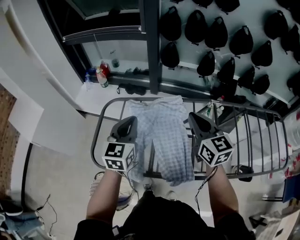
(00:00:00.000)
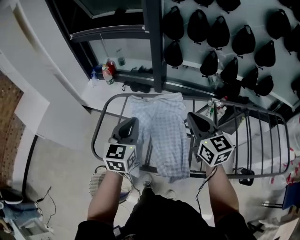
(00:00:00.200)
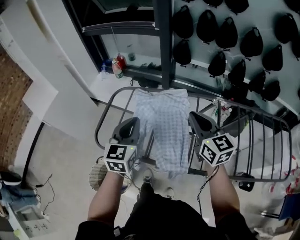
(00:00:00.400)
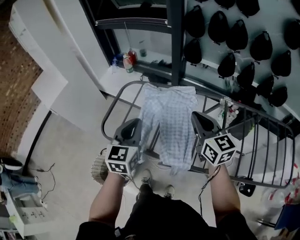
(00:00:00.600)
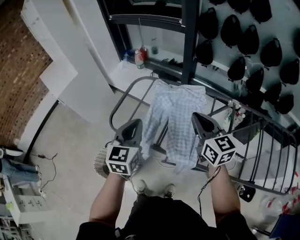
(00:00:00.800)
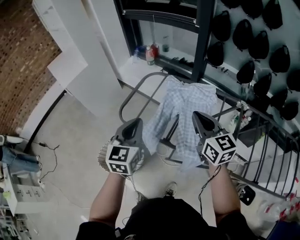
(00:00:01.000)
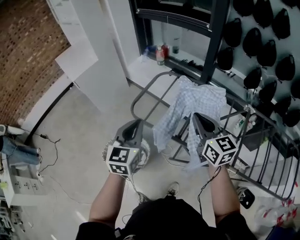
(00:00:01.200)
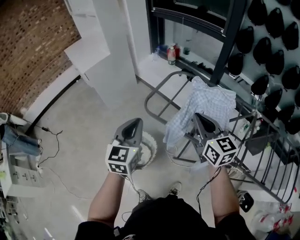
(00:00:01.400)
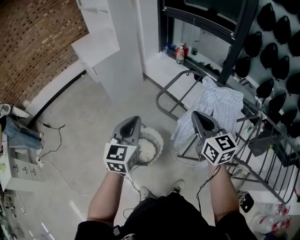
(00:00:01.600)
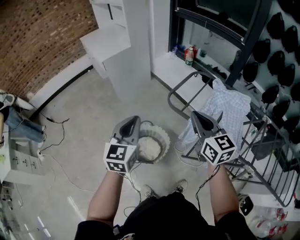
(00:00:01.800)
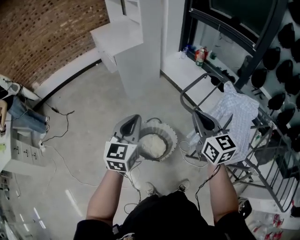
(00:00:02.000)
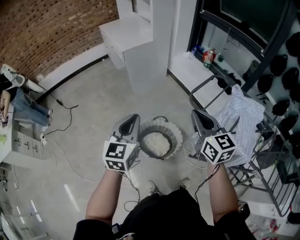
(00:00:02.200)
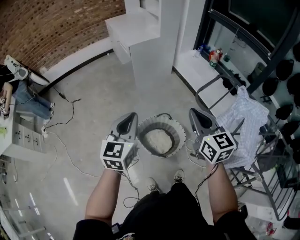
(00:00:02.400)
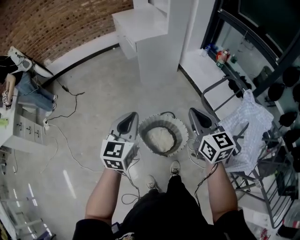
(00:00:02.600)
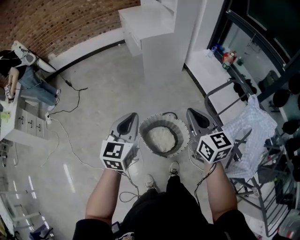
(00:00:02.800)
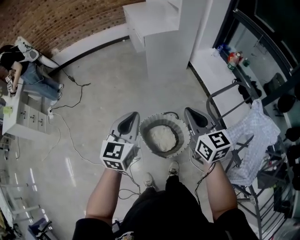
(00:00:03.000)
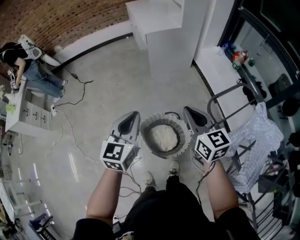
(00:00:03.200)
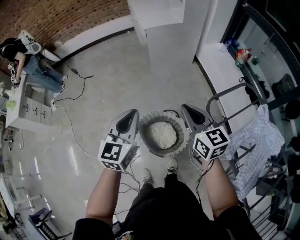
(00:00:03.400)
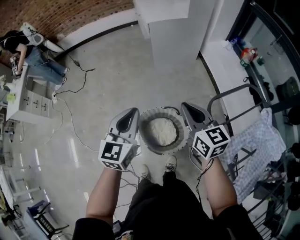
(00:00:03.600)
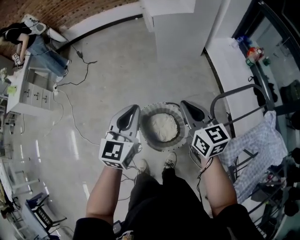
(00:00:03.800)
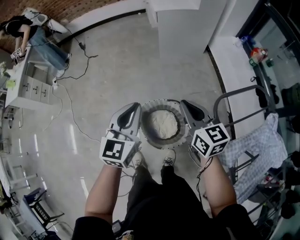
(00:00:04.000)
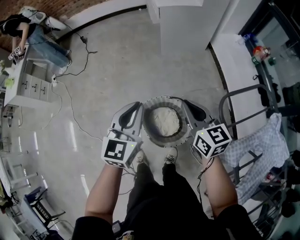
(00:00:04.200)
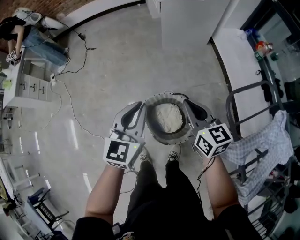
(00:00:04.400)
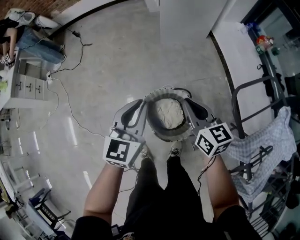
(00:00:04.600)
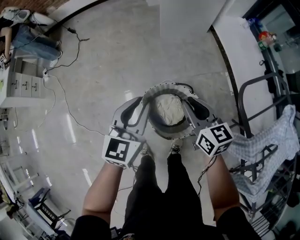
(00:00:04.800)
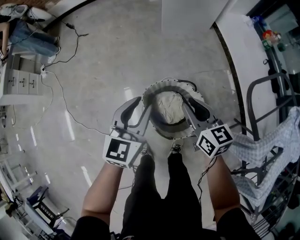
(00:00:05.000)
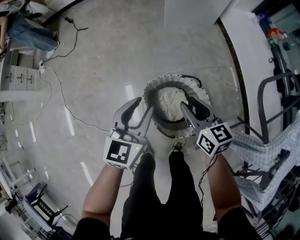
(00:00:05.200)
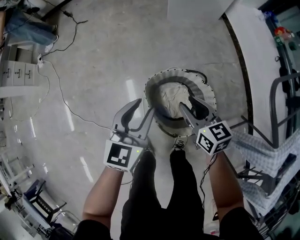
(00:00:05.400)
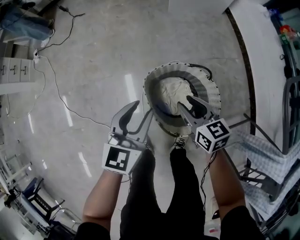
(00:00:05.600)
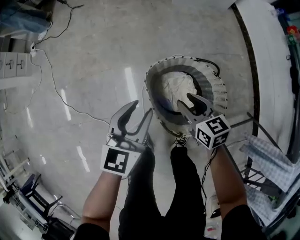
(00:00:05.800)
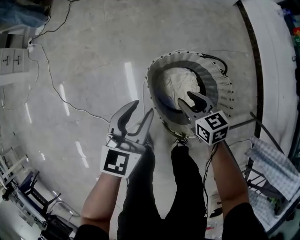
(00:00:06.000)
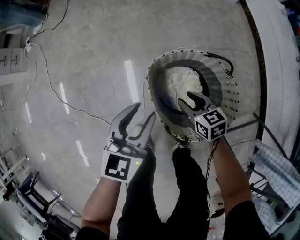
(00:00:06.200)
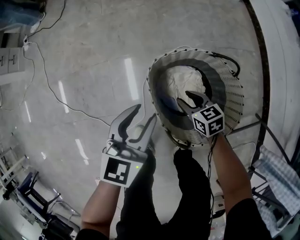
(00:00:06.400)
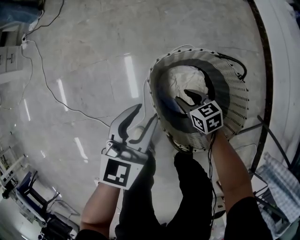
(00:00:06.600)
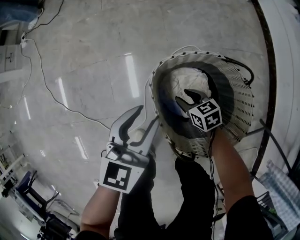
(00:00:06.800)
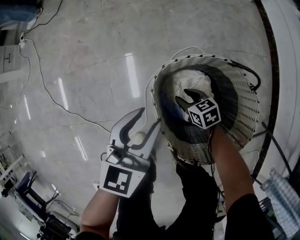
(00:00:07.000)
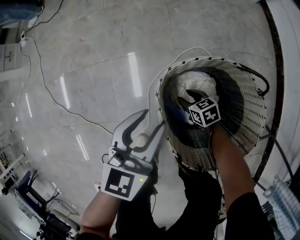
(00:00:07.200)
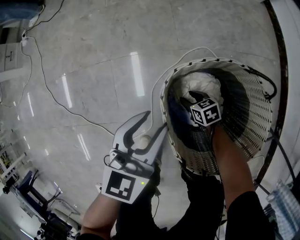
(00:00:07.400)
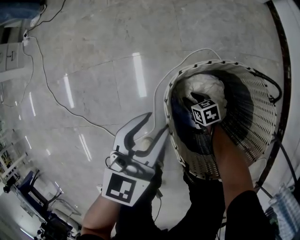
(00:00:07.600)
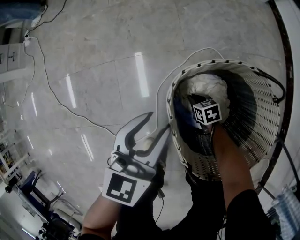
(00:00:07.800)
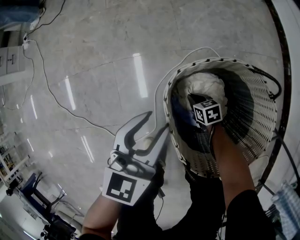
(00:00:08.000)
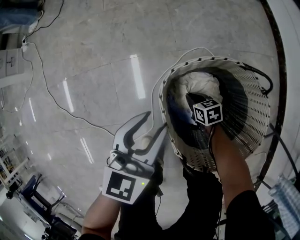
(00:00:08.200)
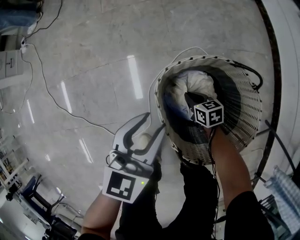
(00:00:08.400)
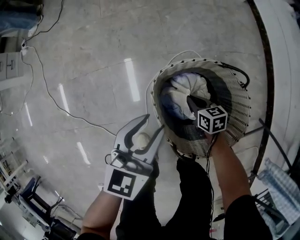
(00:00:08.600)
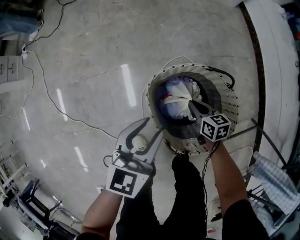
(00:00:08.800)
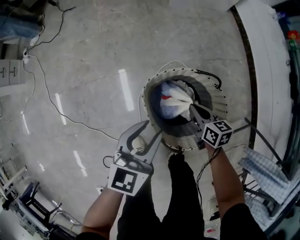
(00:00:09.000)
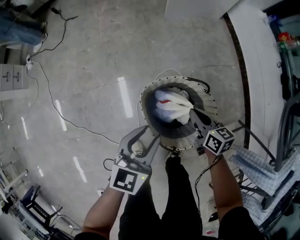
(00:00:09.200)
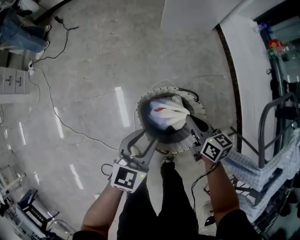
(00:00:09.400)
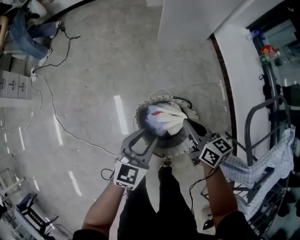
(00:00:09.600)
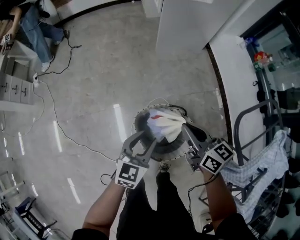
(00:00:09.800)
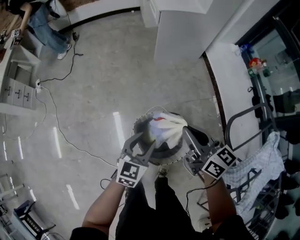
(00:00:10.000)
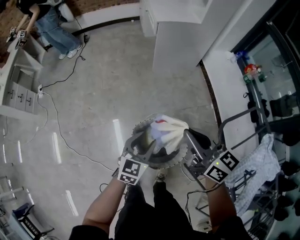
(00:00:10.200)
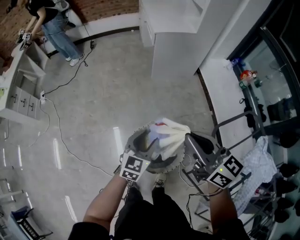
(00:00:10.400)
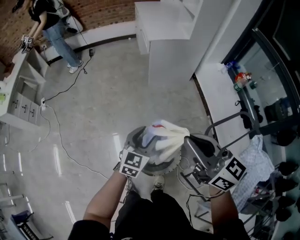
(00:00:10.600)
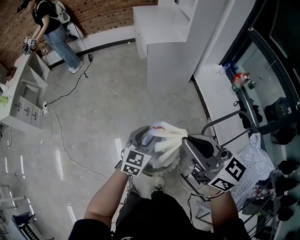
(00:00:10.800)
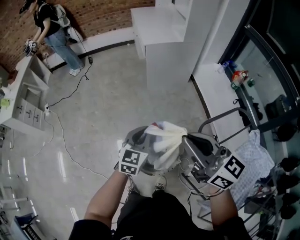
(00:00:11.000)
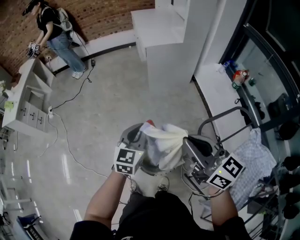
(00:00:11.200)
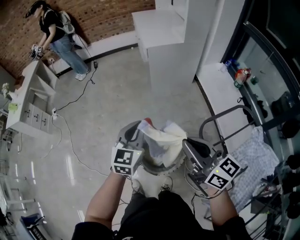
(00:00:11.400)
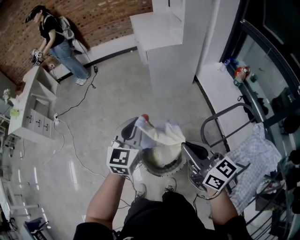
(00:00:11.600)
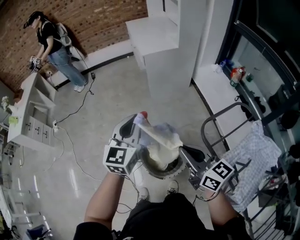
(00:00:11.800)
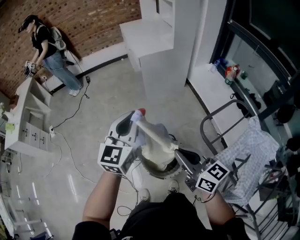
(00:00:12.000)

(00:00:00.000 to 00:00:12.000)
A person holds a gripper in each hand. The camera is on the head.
00:00:00.000 - 00:00:01.600: The right gripper moves roughly 35 cm, and rotates approximately 30 degrees. Meanwhile the left gripper moves about 40 cm, and turns by some 30 degrees.
00:00:01.600 - 00:00:03.000: The left gripper travels to the left by about 20 cm, and rotates approximately 20 degrees. Meanwhile the right gripper is displaced to the left and forward by some 25 cm, and rotates approximately 30 degrees.
00:00:03.000 - 00:00:04.400: The left gripper goes about 10 cm downward, while the right gripper travels downward and forward by roughly 15 cm.
00:00:04.400 - 00:00:06.000: The grippers both shift downward by approximately 40 cm. The right gripper changes its angle by about 30 degrees, and opens up, while the left gripper opens its fingers.
00:00:06.000 - 00:00:07.600: The right gripper heads downward, covering roughly 35 cm, and rotates roughly 20 degrees. The left gripper shifts approximately 15 cm downward.
00:00:07.600 - 00:00:09.000: The left gripper goes roughly 15 cm upward. The right gripper goes some 35 cm upward, swivels roughly 30 degrees, and closes.
00:00:09.000 - 00:00:10.400: The left gripper shifts roughly 25 cm upward, while the right gripper is displaced upward by roughly 60 cm, and angles its fingers upward, by some 30 degrees.
00:00:10.400 - 00:00:12.000: The left gripper moves upward, some 25 cm, turns by roughly 20 degrees, and closes. The right gripper is displaced backward by approximately 10 cm.

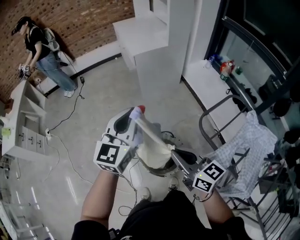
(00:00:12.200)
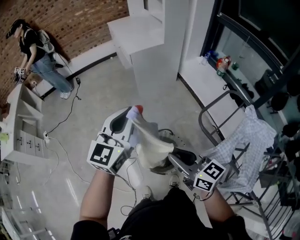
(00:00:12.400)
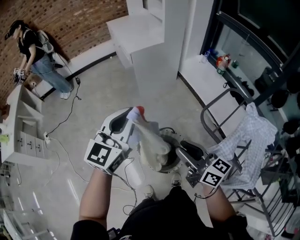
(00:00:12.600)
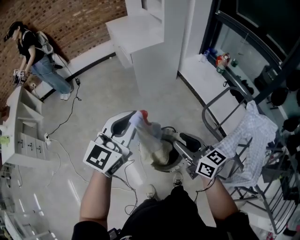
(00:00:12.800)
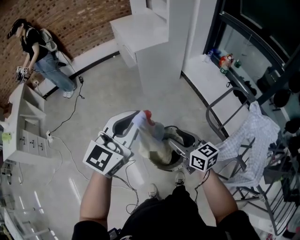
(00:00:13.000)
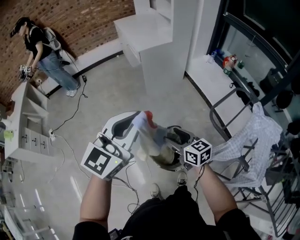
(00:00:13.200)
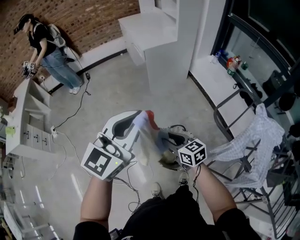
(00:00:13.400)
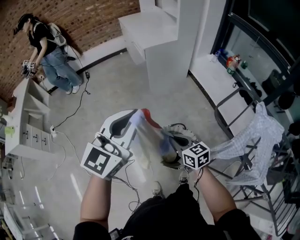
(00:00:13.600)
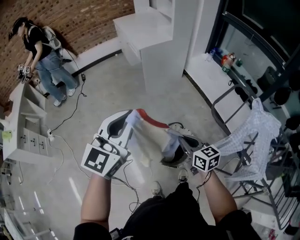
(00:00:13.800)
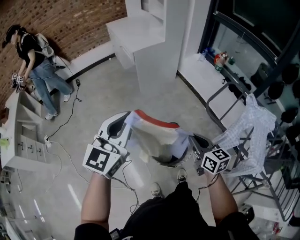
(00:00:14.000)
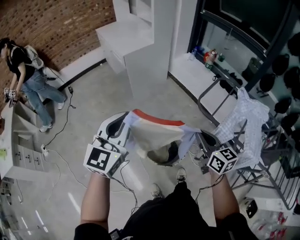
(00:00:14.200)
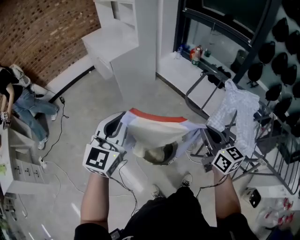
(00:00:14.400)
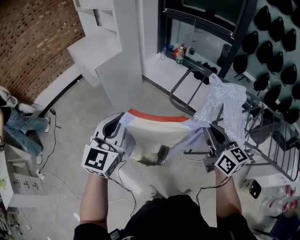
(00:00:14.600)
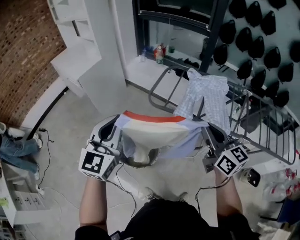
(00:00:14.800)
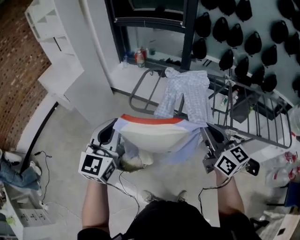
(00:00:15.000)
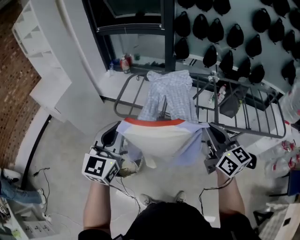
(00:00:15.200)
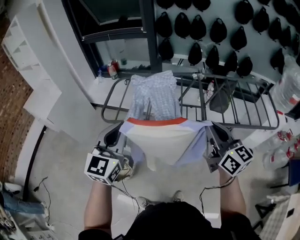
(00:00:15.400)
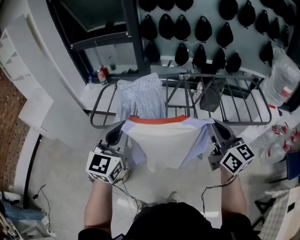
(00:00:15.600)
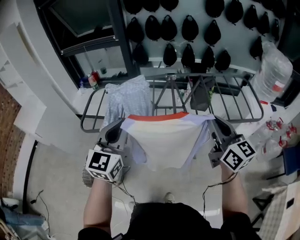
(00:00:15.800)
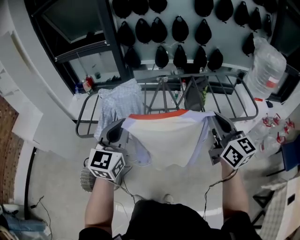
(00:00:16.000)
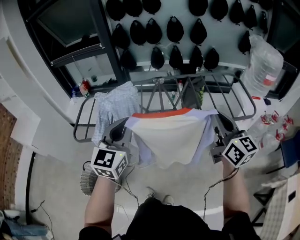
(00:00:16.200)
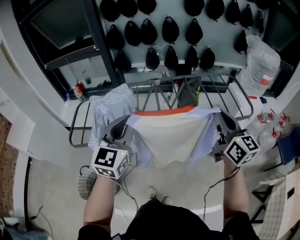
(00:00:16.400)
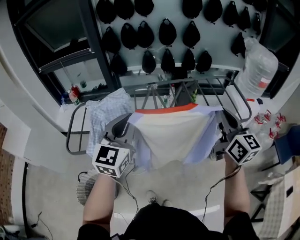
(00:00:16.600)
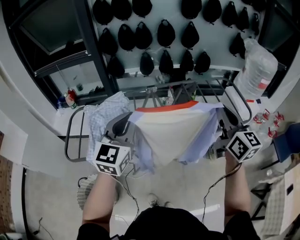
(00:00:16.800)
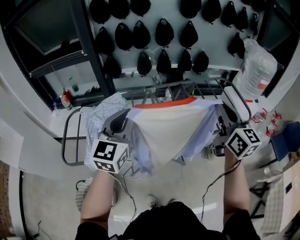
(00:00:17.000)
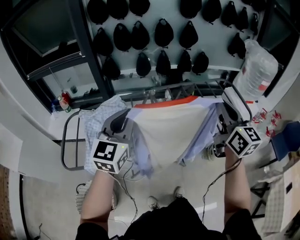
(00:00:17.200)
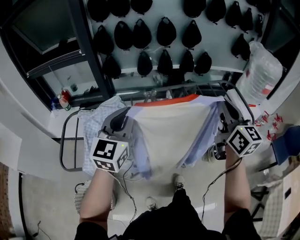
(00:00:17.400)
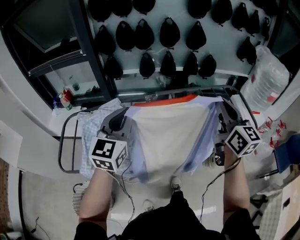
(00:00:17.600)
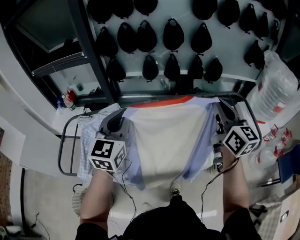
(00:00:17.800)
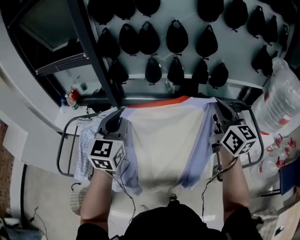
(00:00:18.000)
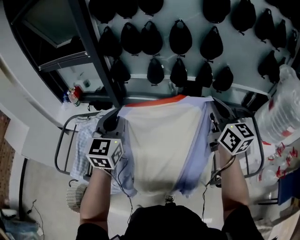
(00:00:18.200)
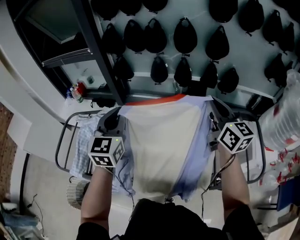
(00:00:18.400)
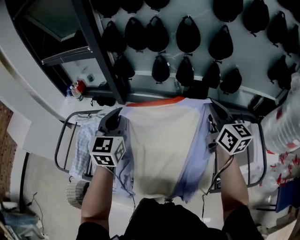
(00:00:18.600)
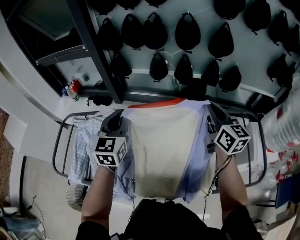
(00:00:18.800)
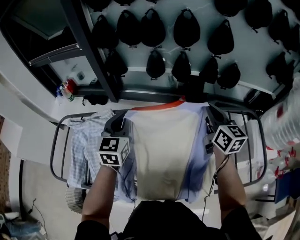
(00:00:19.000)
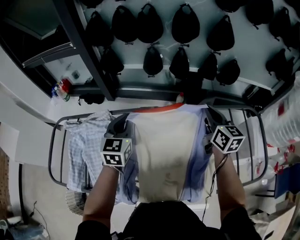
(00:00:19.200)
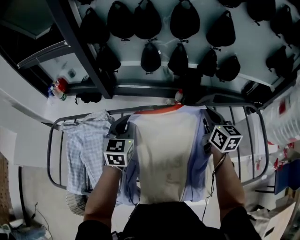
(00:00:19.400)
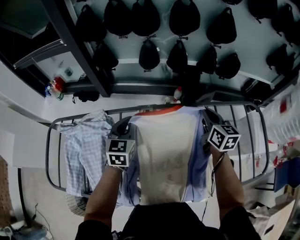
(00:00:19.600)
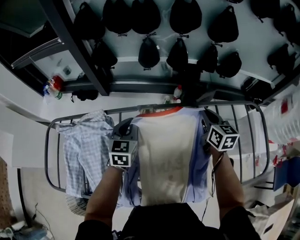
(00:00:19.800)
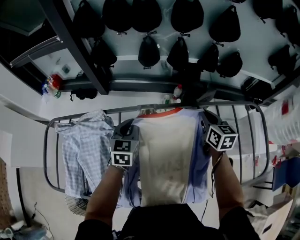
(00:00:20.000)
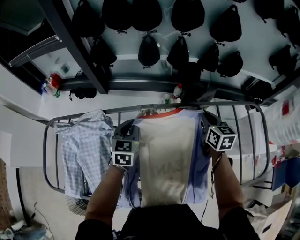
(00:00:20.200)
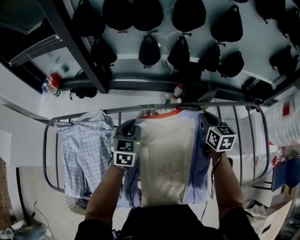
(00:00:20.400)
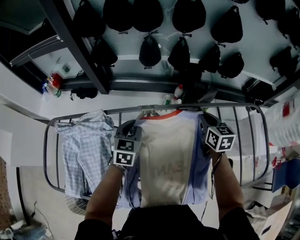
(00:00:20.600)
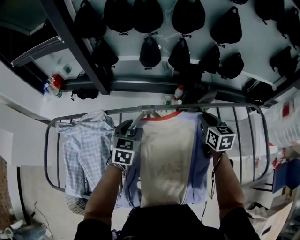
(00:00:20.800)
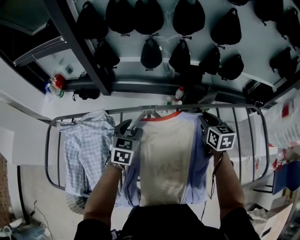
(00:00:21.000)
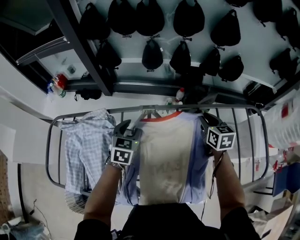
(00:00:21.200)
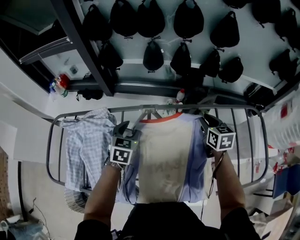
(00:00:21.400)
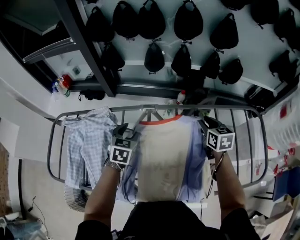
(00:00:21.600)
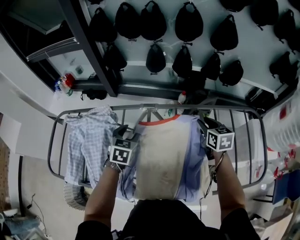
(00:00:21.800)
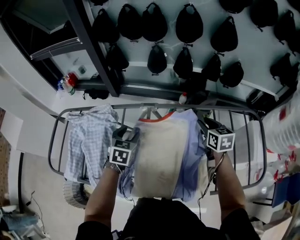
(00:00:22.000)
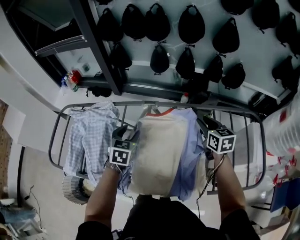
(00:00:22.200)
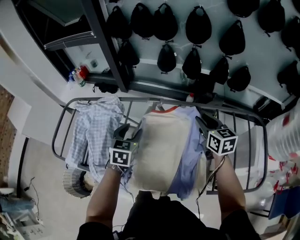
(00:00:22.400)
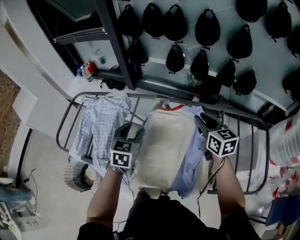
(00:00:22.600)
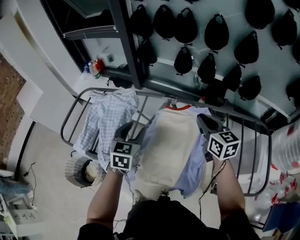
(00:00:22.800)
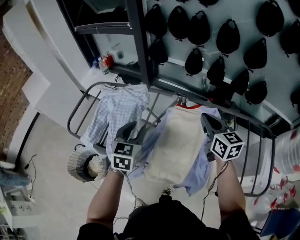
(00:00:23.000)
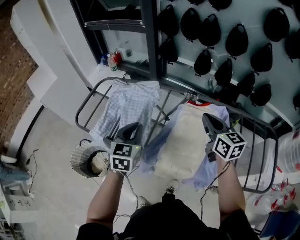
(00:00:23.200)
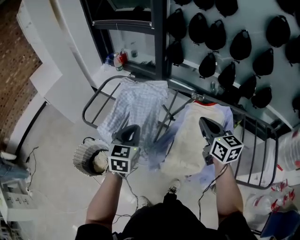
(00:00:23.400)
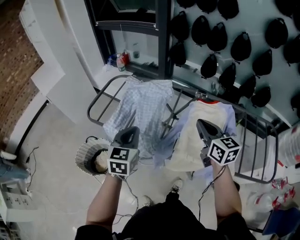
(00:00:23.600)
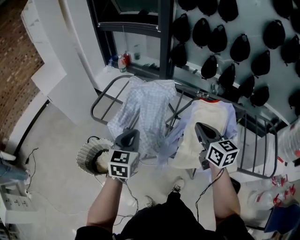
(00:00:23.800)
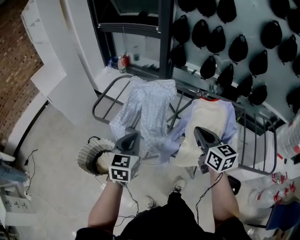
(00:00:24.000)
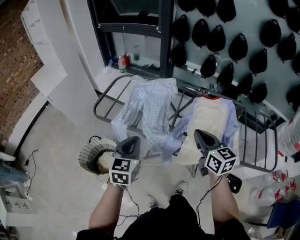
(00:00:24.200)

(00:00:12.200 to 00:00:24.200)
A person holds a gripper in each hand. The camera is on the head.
00:00:12.200 - 00:00:13.800: The left gripper goes about 10 cm to the left and backward. Meanwhile the right gripper shifts about 10 cm downward and to the left, and opens, then closes again.
00:00:13.800 - 00:00:15.200: The right gripper shifts by approximately 60 cm, and turns by approximately 60 degrees; the left gripper ends up about 40 cm from where it was, and changes its angle by some 30 degrees.
00:00:15.200 - 00:00:16.600: The left gripper moves approximately 35 cm, and rotates about 20 degrees; the right gripper shifts by about 35 cm, and turns by about 30 degrees.
00:00:16.600 - 00:00:18.200: Both grippers travel together forward, approximately 30 cm.
00:00:18.200 - 00:00:19.800: Both grippers move downward and forward, approximately 25 cm. The right gripper changes its angle by some 30 degrees. Meanwhile the left gripper rotates about 20 degrees.
00:00:19.800 - 00:00:21.200: The left gripper opens its fingers, while the right gripper opens.
00:00:21.200 - 00:00:22.600: The right gripper travels upward, backward and to the left by approximately 10 cm, and changes its angle by approximately 20 degrees, while the left gripper is displaced backward and upward by some 15 cm.
00:00:22.600 - 00:00:24.200: The two grippers go approximately 40 cm to the left and backward. The left gripper closes. The right gripper closes.
